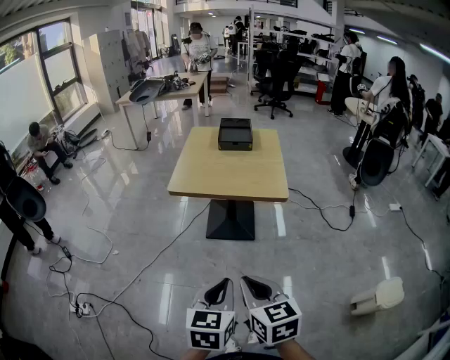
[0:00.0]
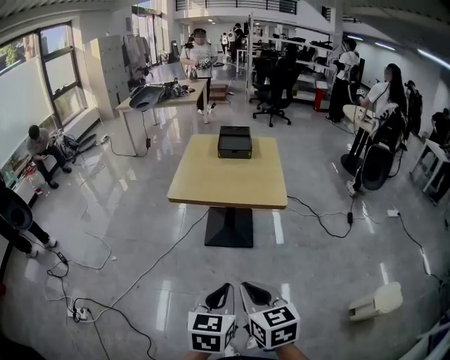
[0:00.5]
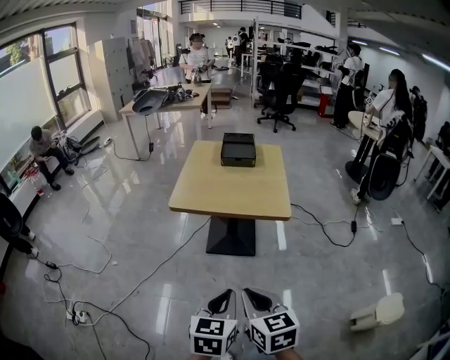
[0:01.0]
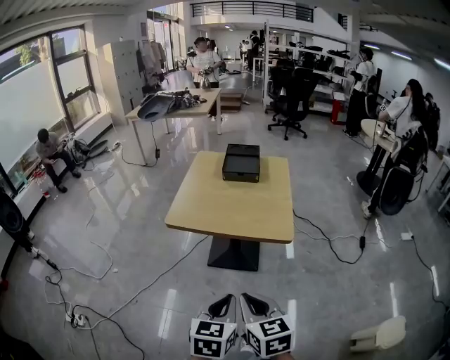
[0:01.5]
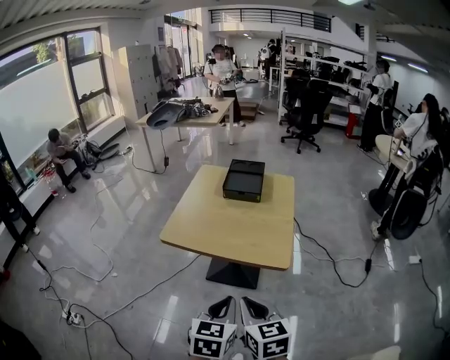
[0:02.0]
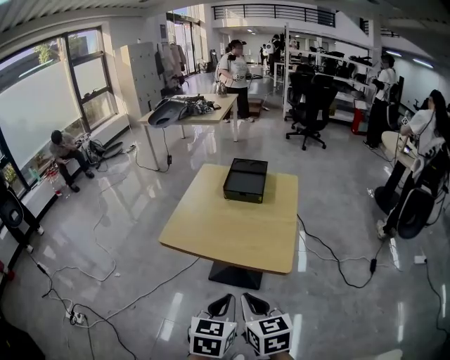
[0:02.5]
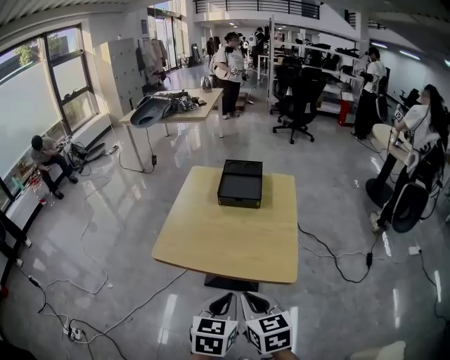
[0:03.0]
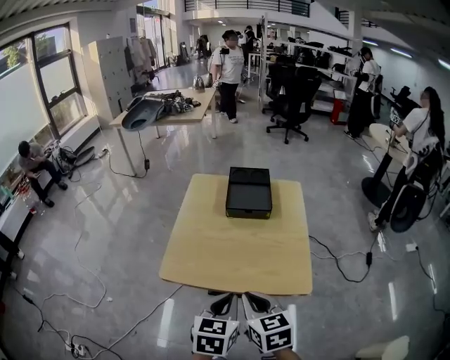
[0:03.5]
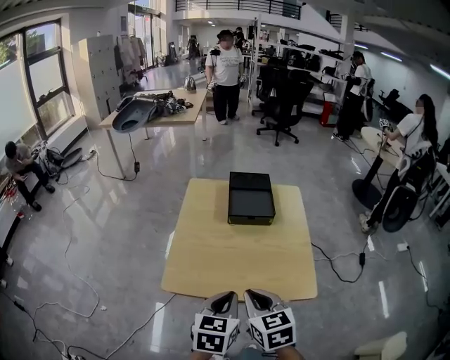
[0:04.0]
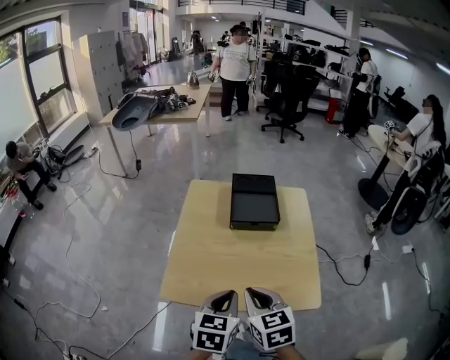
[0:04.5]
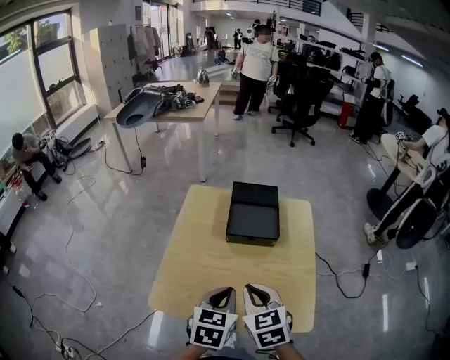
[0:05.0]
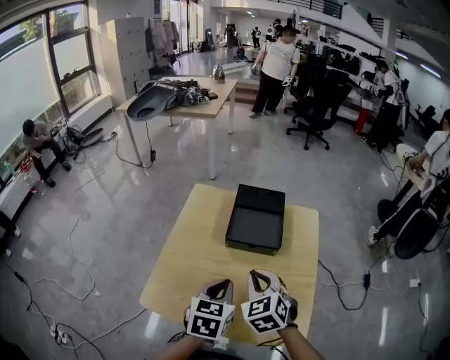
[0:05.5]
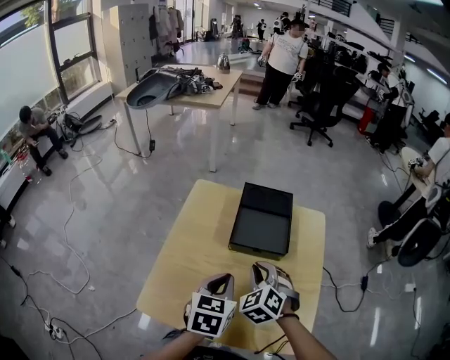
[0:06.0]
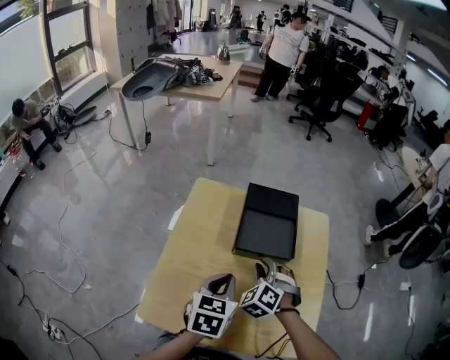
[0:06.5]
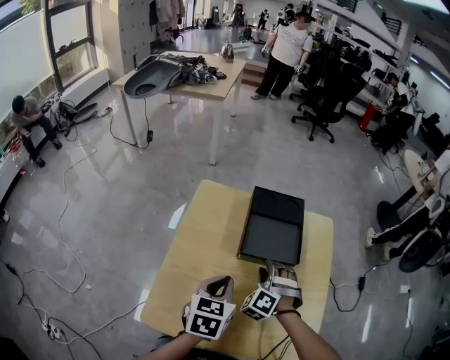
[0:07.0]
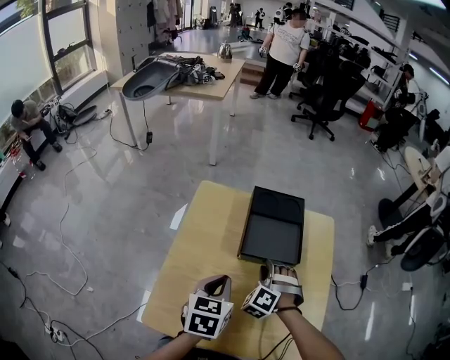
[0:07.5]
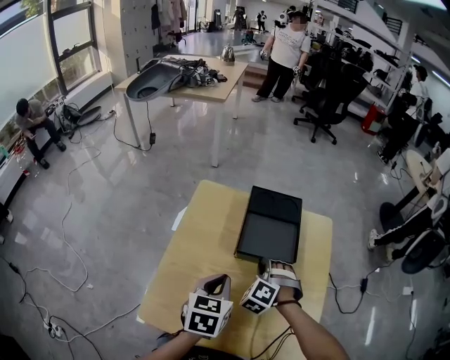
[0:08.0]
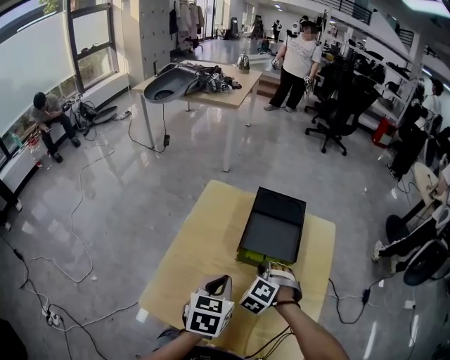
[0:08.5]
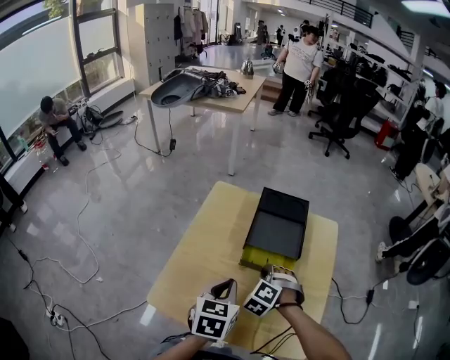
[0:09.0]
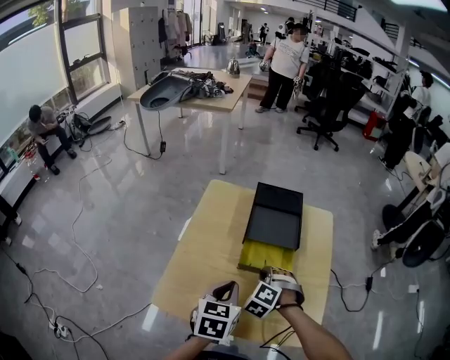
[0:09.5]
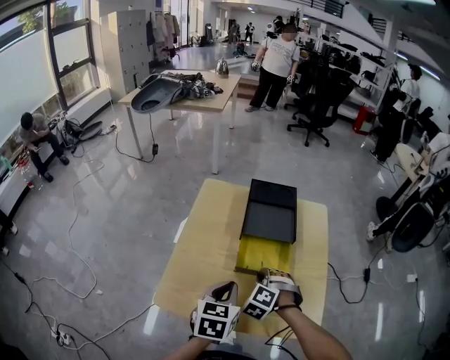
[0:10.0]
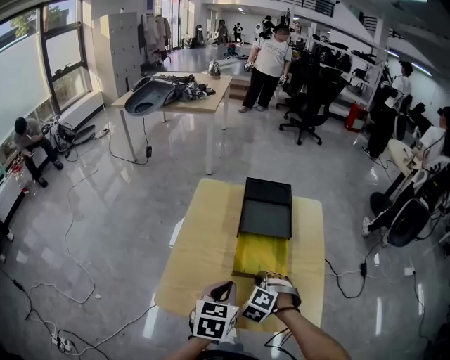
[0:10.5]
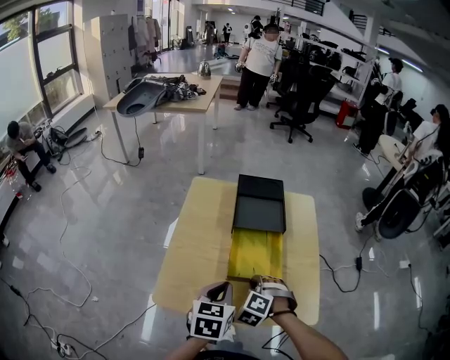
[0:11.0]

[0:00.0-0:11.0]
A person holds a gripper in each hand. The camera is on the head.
0.0 to 2.0 s: The pair of grippers is taken forward and to the right, approximately 1.5 m.
2.0 to 3.5 s: The two grippers travel together, forward and to the left, some 1.5 m.
3.5 to 5.5 s: The two grippers travel together, forward, some 1.5 m. The right gripper turns by about 30 degrees.
5.5 to 7.5 s: The two grippers travel together, forward and to the left, about 1 m. The right gripper moves downward, about 30 cm, changes its angle by approximately 50 degrees, and opens.
7.5 to 9.0 s: Both grippers are carried backward and to the right, roughly 70 cm.
9.0 to 11.0 s: The pair of grippers is taken backward, some 60 cm.

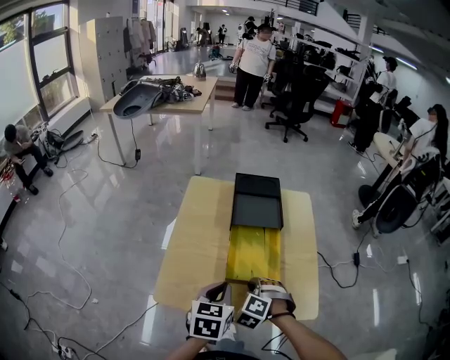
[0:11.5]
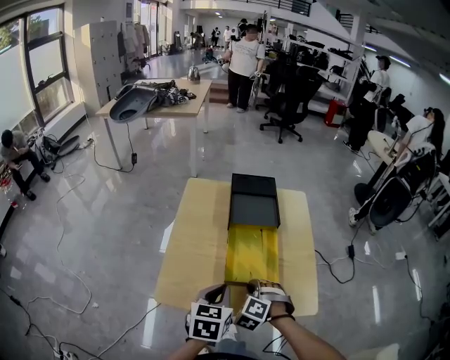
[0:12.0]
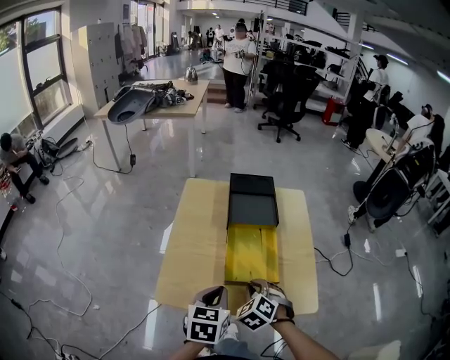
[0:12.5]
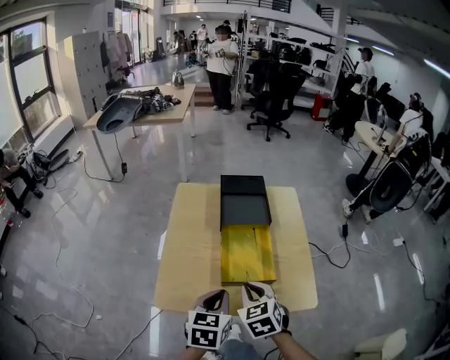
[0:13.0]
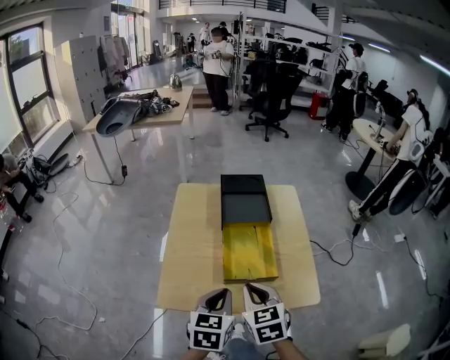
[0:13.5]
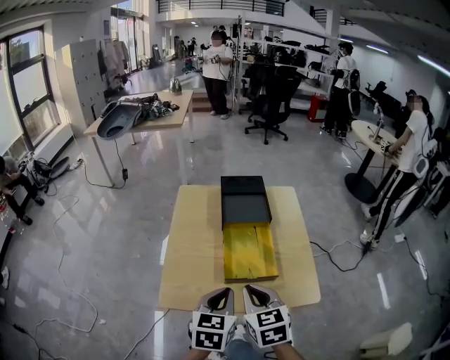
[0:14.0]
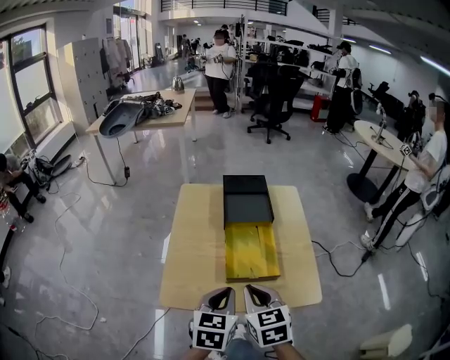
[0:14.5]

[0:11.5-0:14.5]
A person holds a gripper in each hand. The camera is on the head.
11.5 to 13.0 s: The right gripper moves backward and upward, about 25 cm, and rotates around the line of its fingers by some 50 degrees, clockwise from behind. The left gripper shifts approximately 20 cm backward and to the right.
13.0 to 14.5 s: The grippers both shift backward by approximately 15 cm.

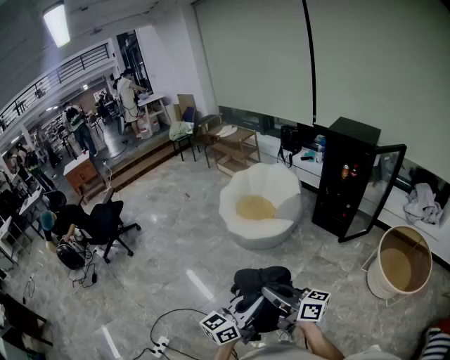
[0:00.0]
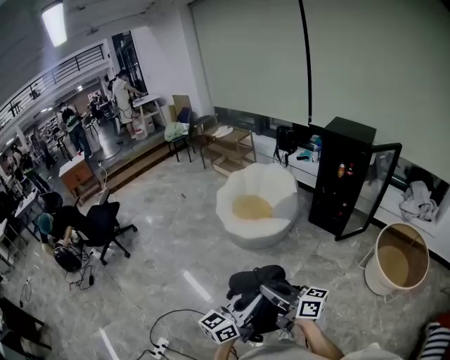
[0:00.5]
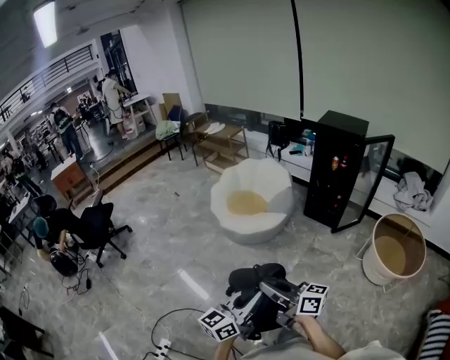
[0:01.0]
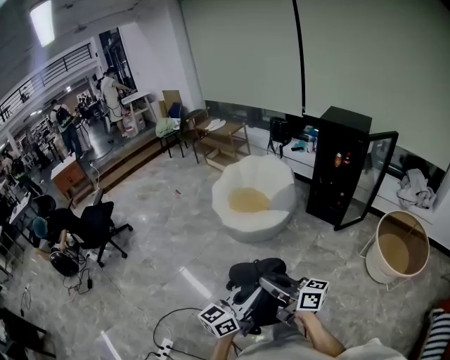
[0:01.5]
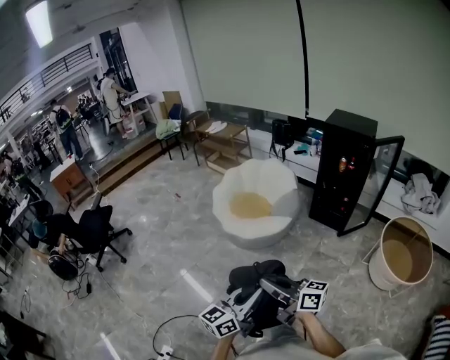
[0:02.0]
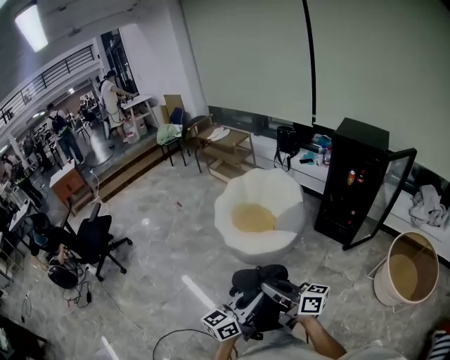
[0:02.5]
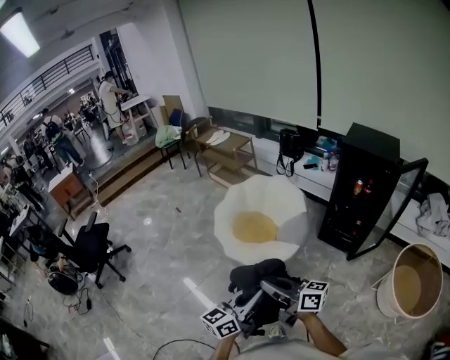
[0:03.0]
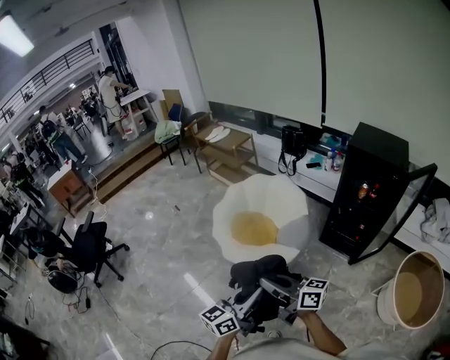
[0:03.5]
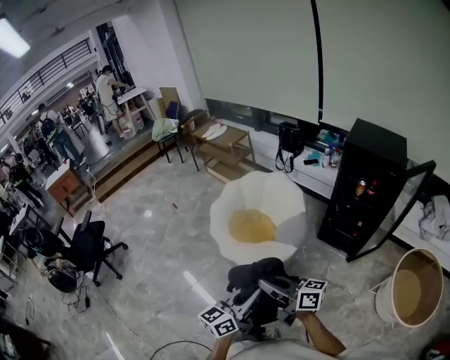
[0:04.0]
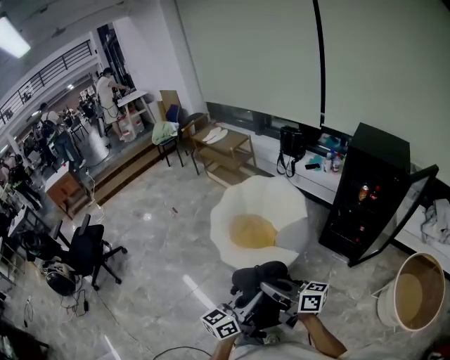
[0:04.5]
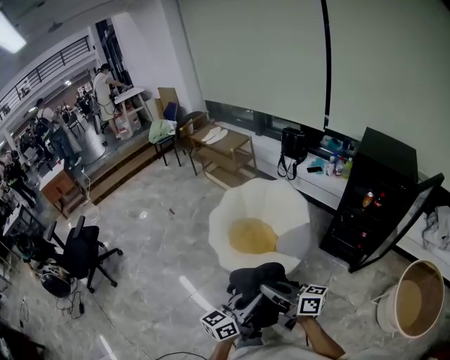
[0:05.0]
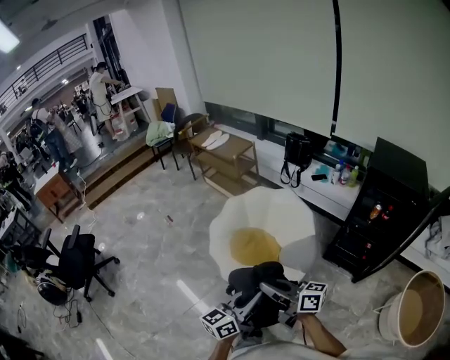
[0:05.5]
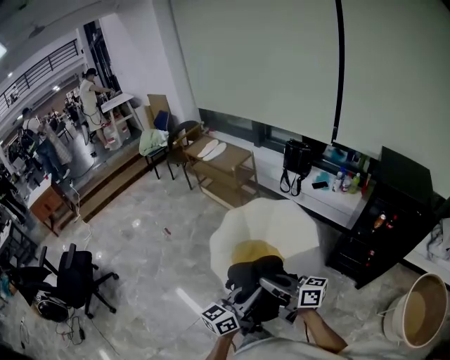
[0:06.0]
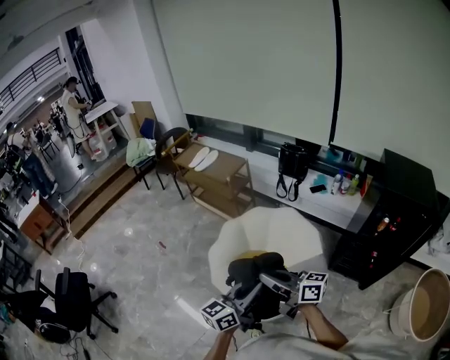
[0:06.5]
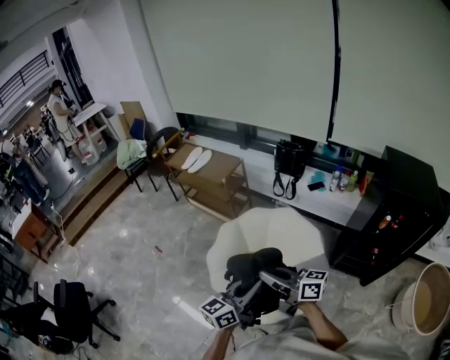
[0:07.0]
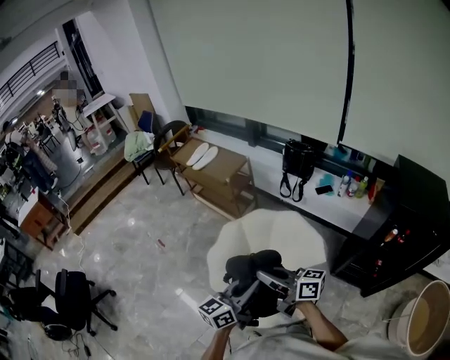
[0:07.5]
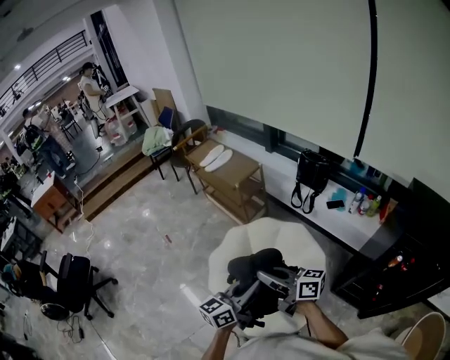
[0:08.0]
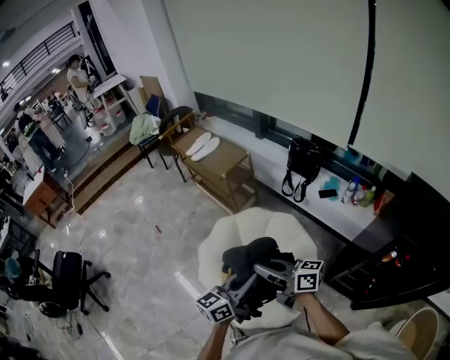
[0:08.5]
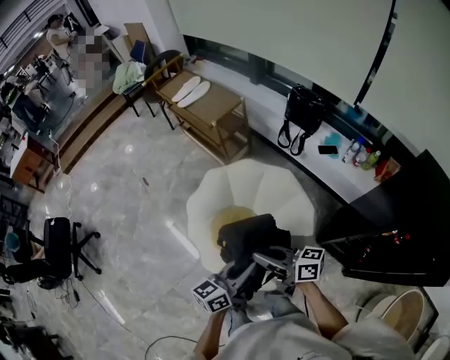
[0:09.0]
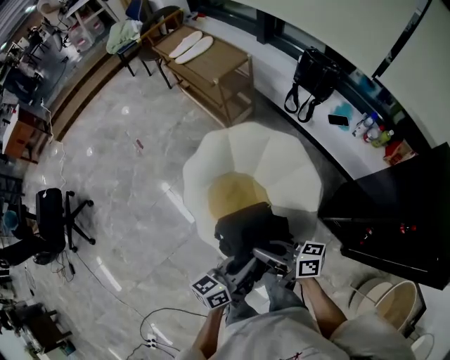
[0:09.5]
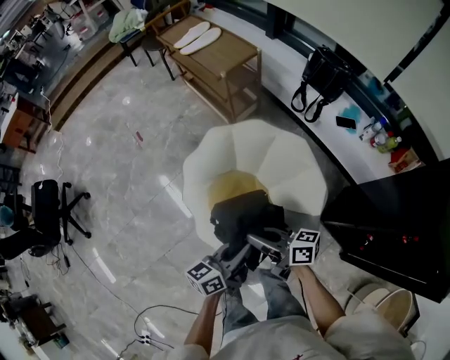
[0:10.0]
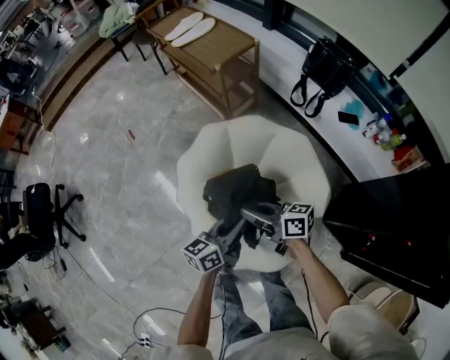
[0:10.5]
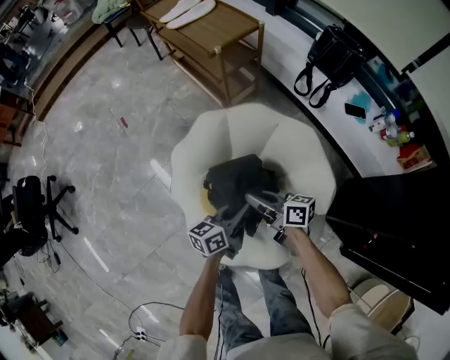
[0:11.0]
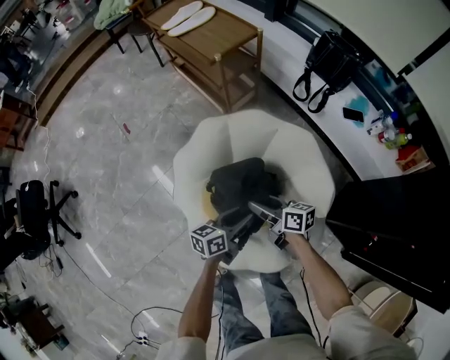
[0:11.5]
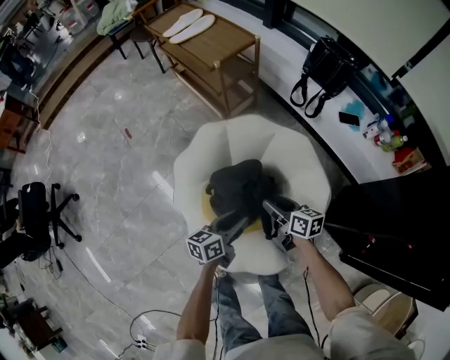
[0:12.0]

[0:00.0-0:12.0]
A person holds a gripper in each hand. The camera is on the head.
0.0 to 2.0 s: The right gripper travels forward and to the left by some 10 cm; the left gripper shifts approximately 10 cm forward.
2.0 to 4.0 s: Both grippers travel together forward, about 30 cm.
4.0 to 6.0 s: Both grippers travel together forward, roughly 30 cm.
6.0 to 8.0 s: Both grippers move forward, approximately 25 cm.
8.0 to 10.0 s: Both grippers move downward, about 20 cm. The right gripper rotates about 20 degrees. Meanwhile the left gripper changes its angle by some 20 degrees.
10.0 to 12.0 s: The right gripper moves downward, forward and to the right, some 25 cm, swivels some 30 degrees, and opens up; the left gripper heads downward and forward, covering roughly 20 cm, and opens its fingers.

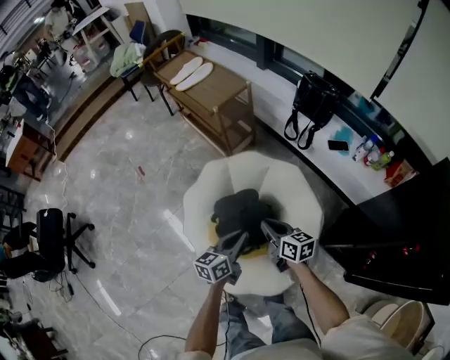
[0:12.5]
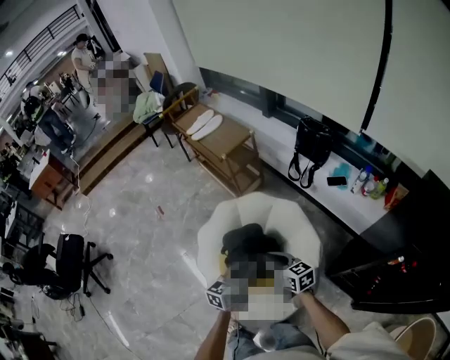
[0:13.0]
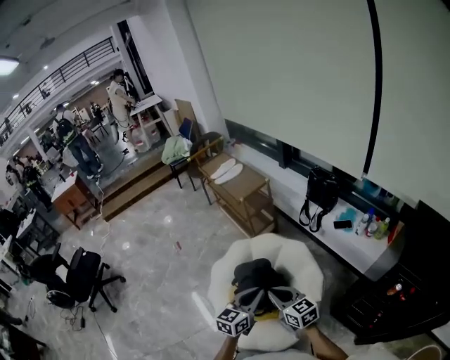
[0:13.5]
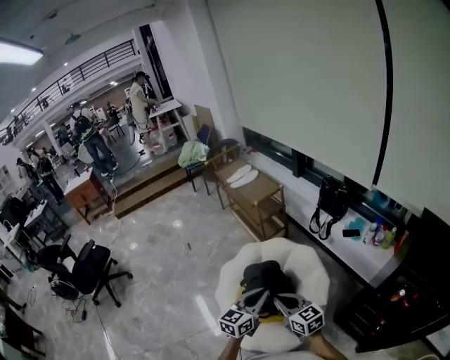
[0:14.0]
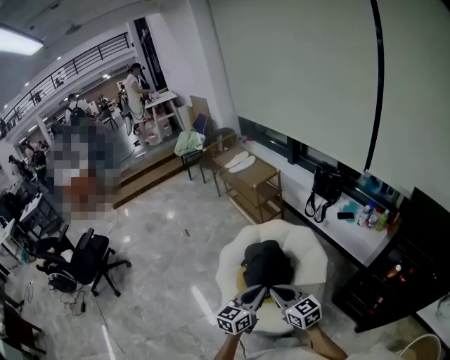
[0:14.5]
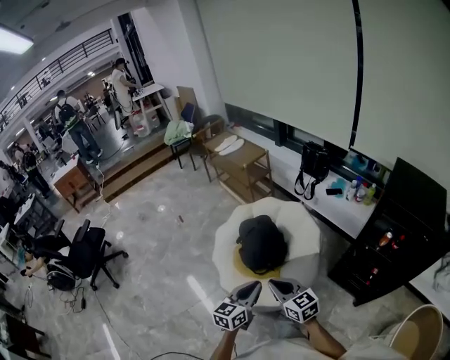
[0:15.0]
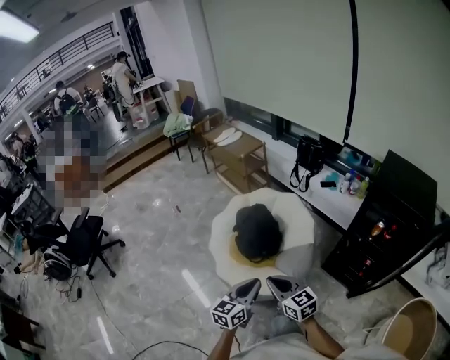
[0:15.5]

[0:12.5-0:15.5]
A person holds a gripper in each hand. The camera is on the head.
12.5 to 14.0 s: The right gripper moves backward and upward, roughly 30 cm, and swivels roughly 30 degrees. Meanwhile the left gripper moves upward and backward, approximately 25 cm, and rotates some 30 degrees.
14.0 to 15.5 s: The grippers both shift backward by approximately 30 cm.
